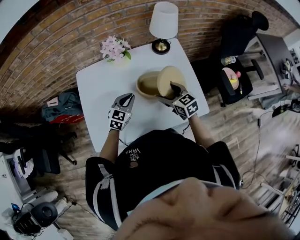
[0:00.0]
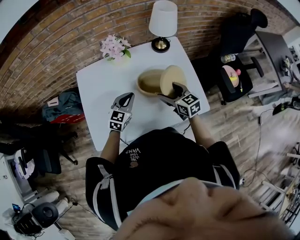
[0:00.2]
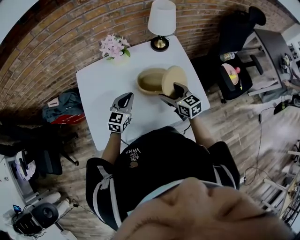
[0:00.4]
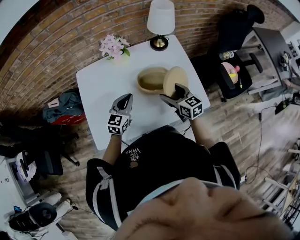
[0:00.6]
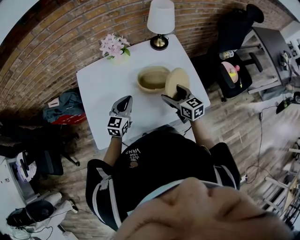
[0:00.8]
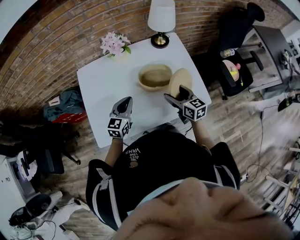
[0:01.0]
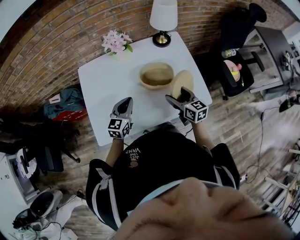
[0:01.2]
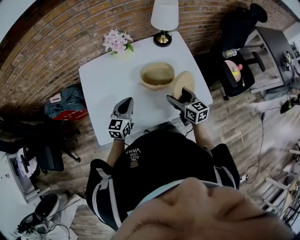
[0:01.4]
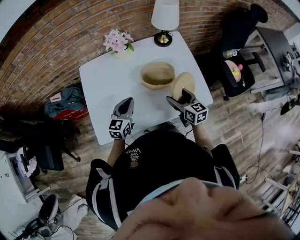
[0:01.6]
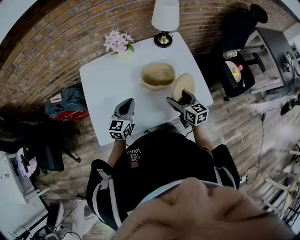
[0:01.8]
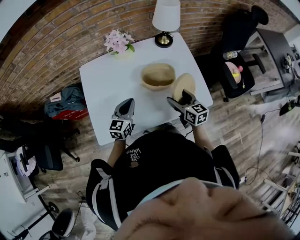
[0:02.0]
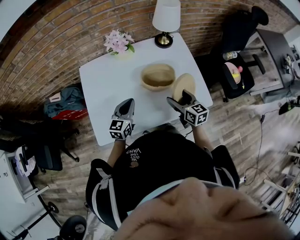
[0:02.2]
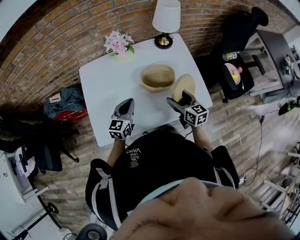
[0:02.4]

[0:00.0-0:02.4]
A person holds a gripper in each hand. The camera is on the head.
0:00.0 to 0:01.2: The grippers both shift backward by some 5 cm. The right gripper turns by some 20 degrees.
0:01.2 to 0:02.4: Neither gripper changes place.

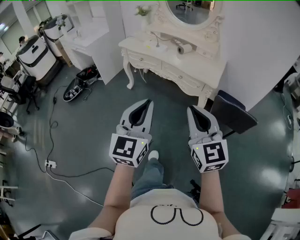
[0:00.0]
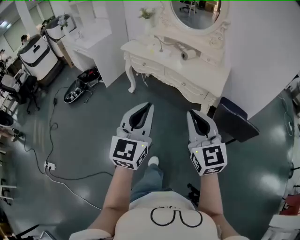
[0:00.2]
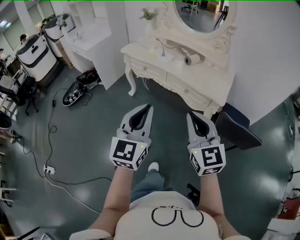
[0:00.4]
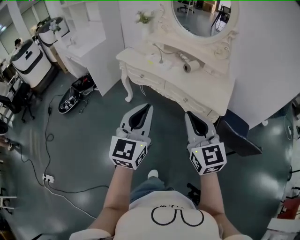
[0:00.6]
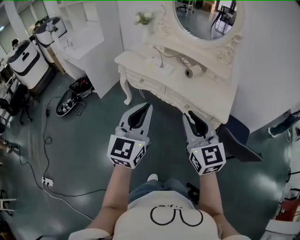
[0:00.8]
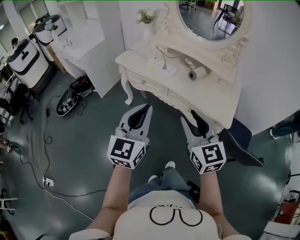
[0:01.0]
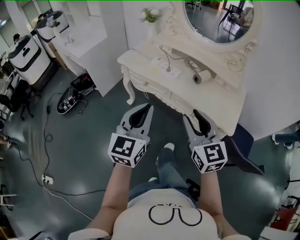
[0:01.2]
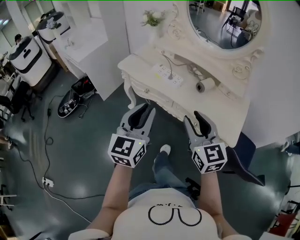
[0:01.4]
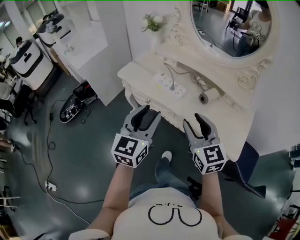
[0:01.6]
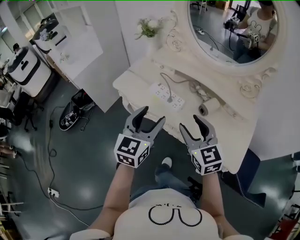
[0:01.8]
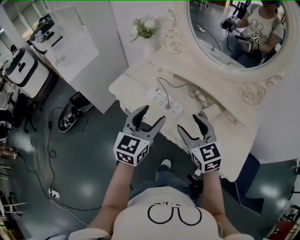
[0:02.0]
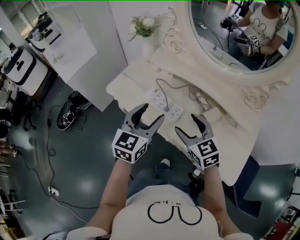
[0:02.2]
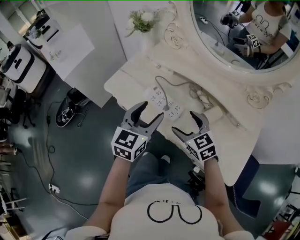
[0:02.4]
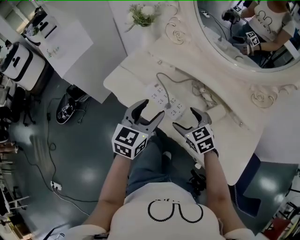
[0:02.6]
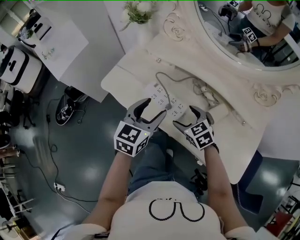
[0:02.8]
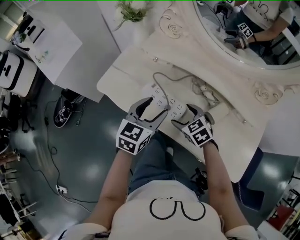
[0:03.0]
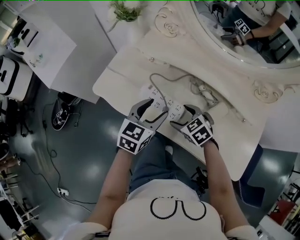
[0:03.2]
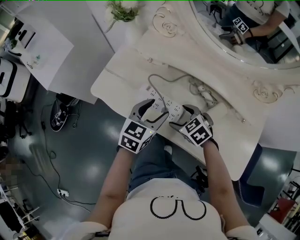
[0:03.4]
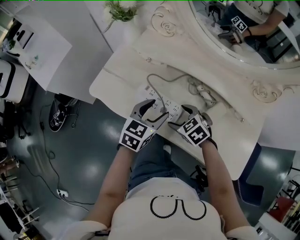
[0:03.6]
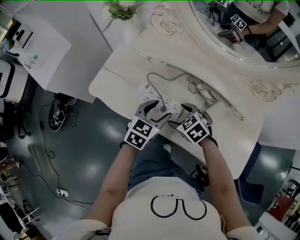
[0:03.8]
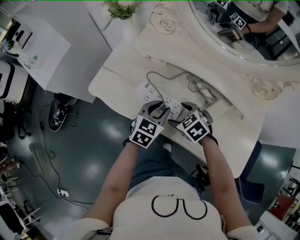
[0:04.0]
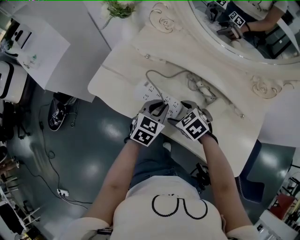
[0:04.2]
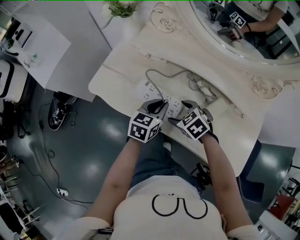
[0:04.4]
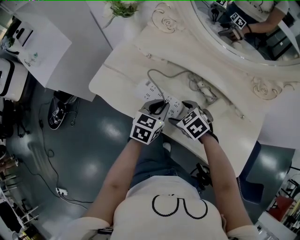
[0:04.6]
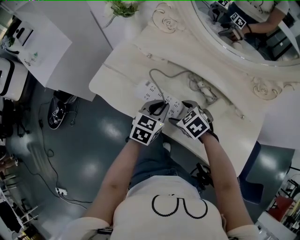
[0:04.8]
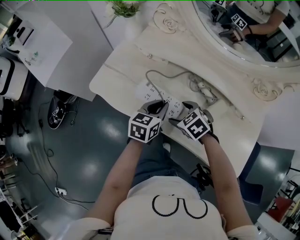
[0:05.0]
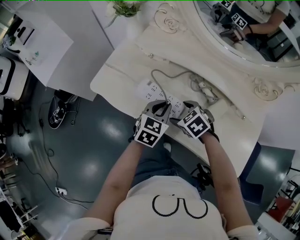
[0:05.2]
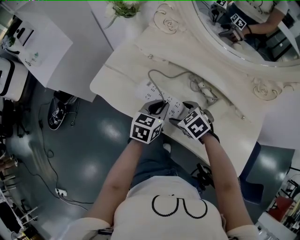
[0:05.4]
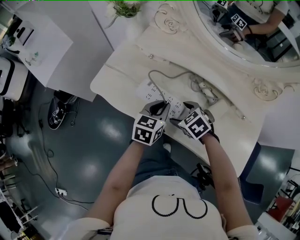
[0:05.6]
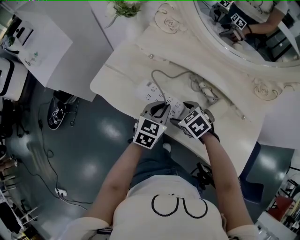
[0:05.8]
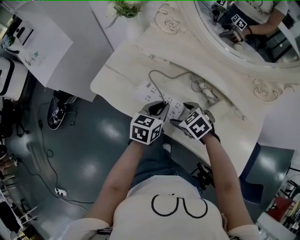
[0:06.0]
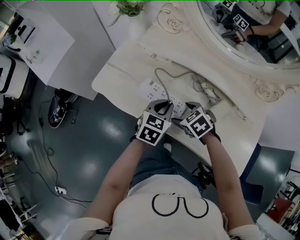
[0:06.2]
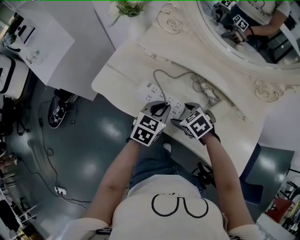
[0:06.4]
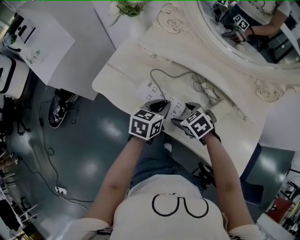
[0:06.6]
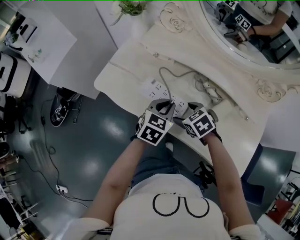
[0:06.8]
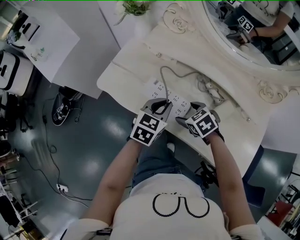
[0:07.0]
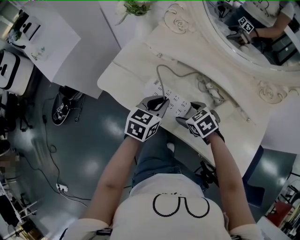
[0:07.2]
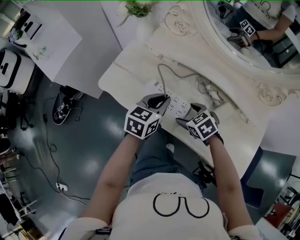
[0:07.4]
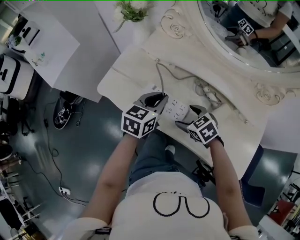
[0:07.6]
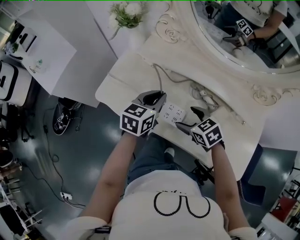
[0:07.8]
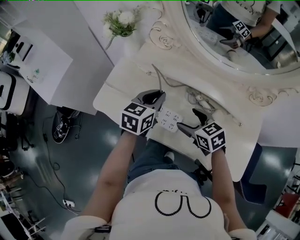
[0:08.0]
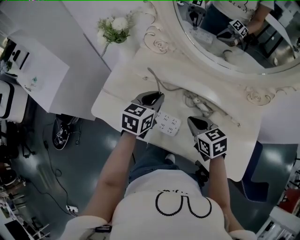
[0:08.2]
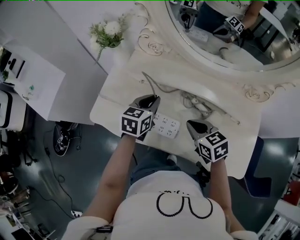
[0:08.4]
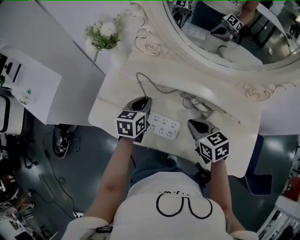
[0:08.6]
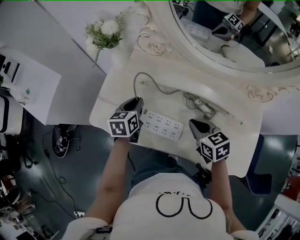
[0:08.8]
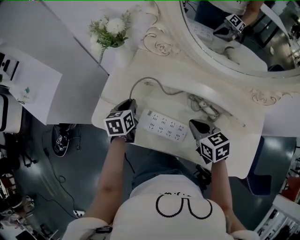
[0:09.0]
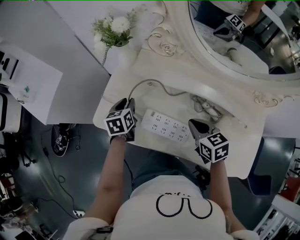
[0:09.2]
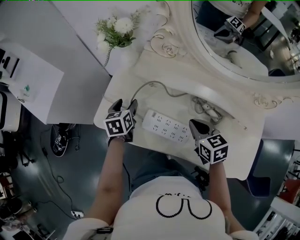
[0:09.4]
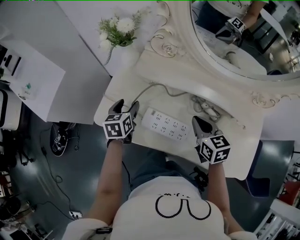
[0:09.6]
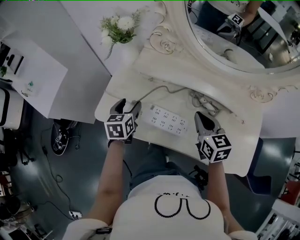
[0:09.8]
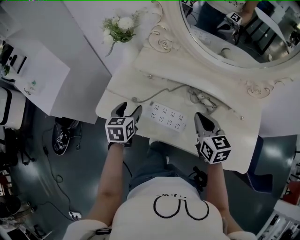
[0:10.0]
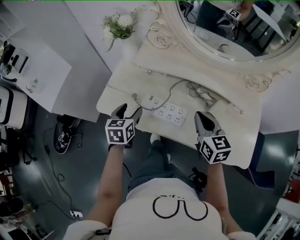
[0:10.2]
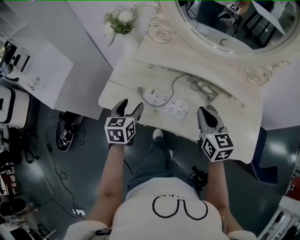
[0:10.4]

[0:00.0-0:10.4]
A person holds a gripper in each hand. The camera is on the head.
0:00.0 to 0:01.4: The pair of grippers is taken forward, some 40 cm. The right gripper opens up.
0:01.4 to 0:03.0: The two grippers go roughly 40 cm forward and downward. The left gripper changes its angle by some 30 degrees, and opens, while the right gripper tilts its fingers some 40 degrees downward, and opens.
0:03.0 to 0:04.4: The left gripper is displaced downward by approximately 10 cm, and closes up.
0:04.4 to 0:06.0: There are only small adjustments of the grippers.
0:06.0 to 0:07.4: The left gripper changes place by approximately 5 cm.
0:07.4 to 0:09.0: The left gripper travels forward and to the left by roughly 20 cm, and swivels roughly 20 degrees. The right gripper goes approximately 10 cm upward and forward, rotates some 30 degrees, and closes up.
0:09.0 to 0:10.4: The right gripper goes some 10 cm upward and backward, and changes its angle by some 30 degrees; the left gripper travels backward and upward by some 15 cm, and opens up.

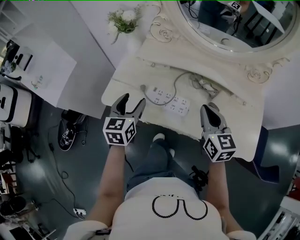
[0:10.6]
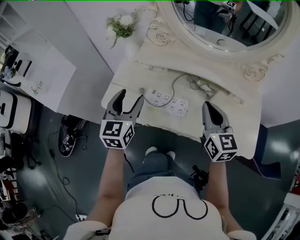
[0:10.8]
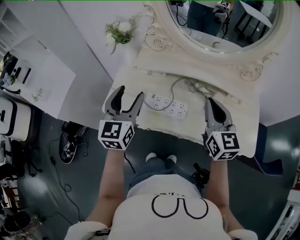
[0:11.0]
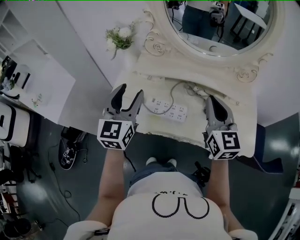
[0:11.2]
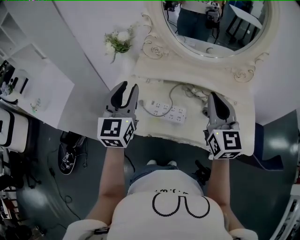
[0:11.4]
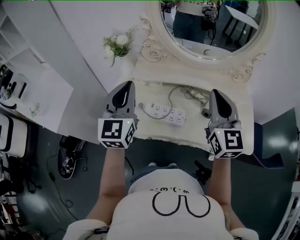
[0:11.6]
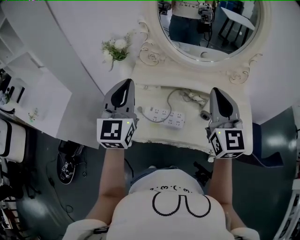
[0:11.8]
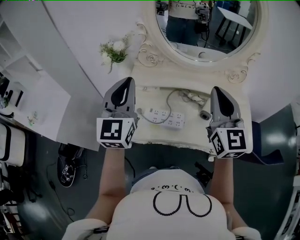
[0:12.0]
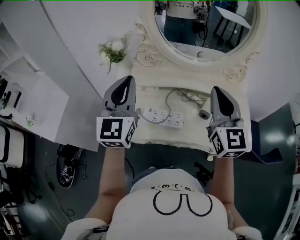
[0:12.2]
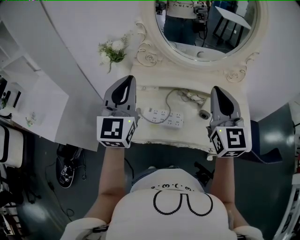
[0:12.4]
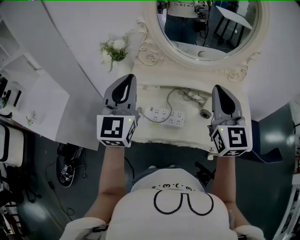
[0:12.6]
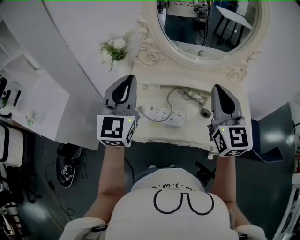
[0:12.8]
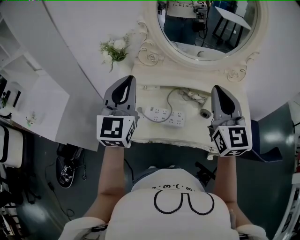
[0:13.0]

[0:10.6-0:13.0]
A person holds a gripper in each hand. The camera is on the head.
0:10.6 to 0:11.8: The two grippers go some 20 cm upward. The left gripper rotates about 40 degrees, and closes up. The right gripper changes its angle by approximately 30 degrees.
0:11.8 to 0:13.0: There are only small adjustments of the grippers.

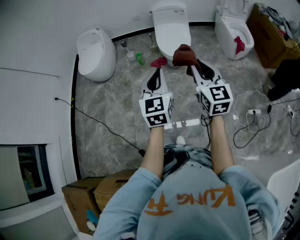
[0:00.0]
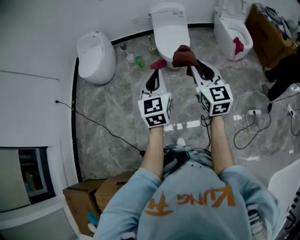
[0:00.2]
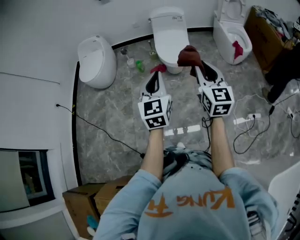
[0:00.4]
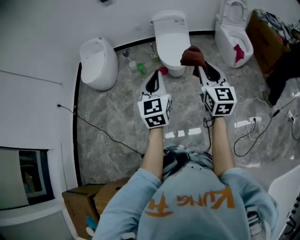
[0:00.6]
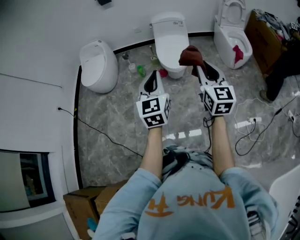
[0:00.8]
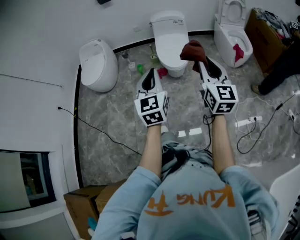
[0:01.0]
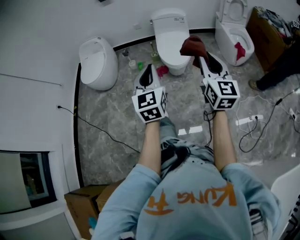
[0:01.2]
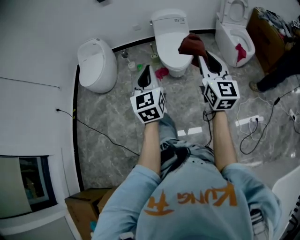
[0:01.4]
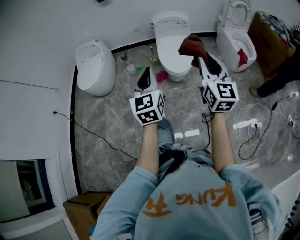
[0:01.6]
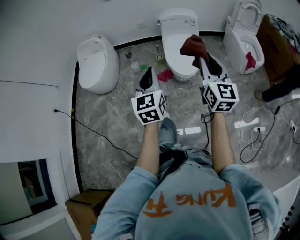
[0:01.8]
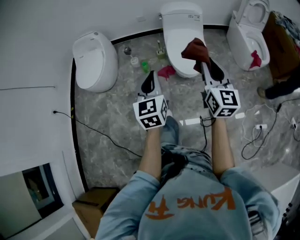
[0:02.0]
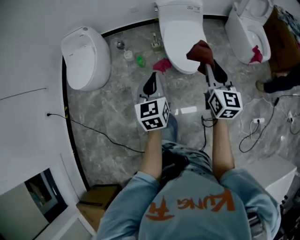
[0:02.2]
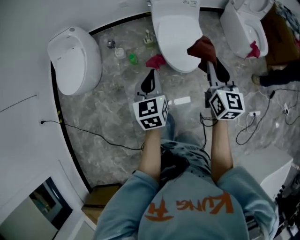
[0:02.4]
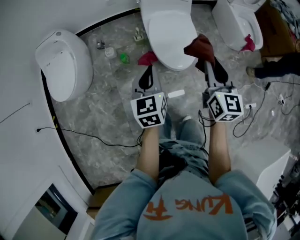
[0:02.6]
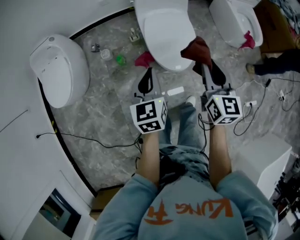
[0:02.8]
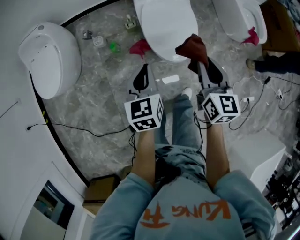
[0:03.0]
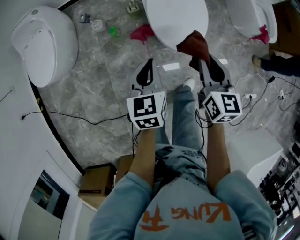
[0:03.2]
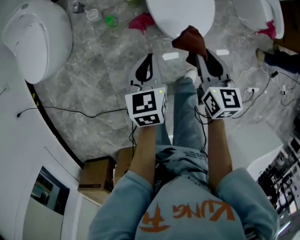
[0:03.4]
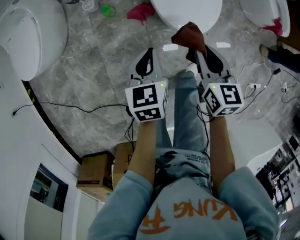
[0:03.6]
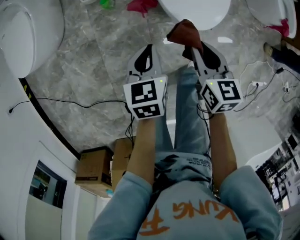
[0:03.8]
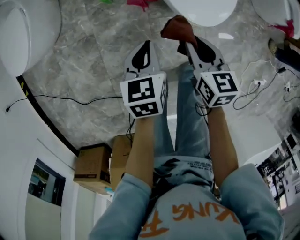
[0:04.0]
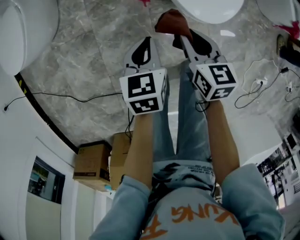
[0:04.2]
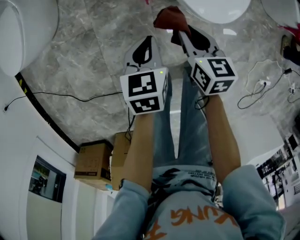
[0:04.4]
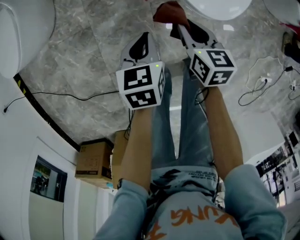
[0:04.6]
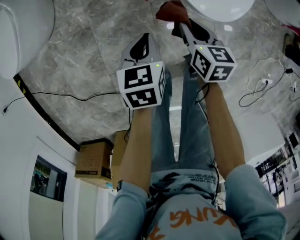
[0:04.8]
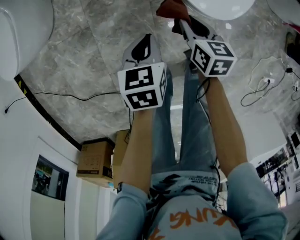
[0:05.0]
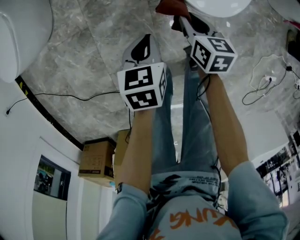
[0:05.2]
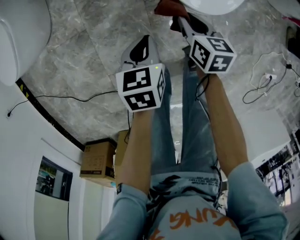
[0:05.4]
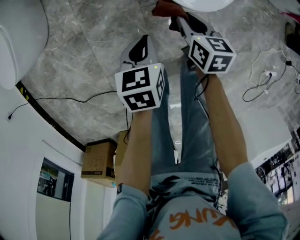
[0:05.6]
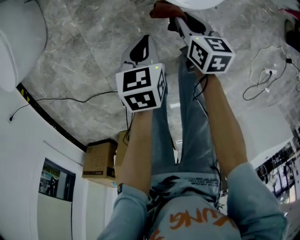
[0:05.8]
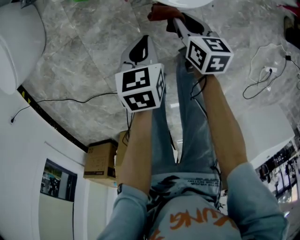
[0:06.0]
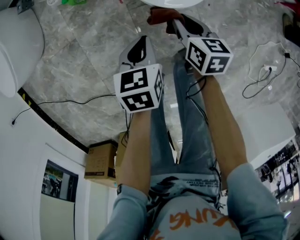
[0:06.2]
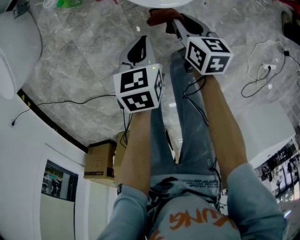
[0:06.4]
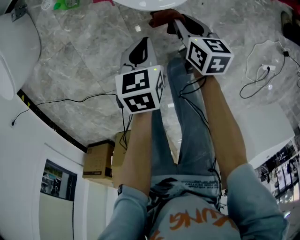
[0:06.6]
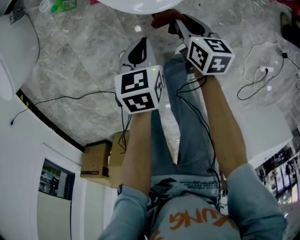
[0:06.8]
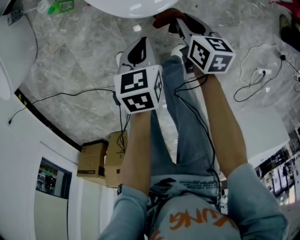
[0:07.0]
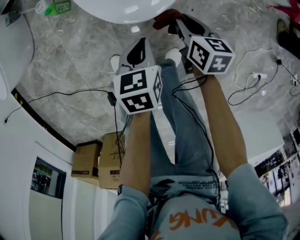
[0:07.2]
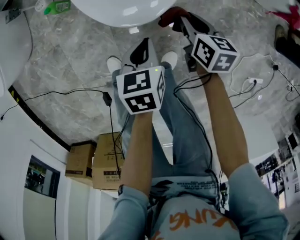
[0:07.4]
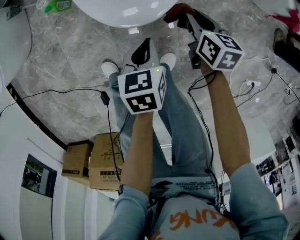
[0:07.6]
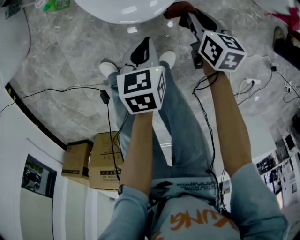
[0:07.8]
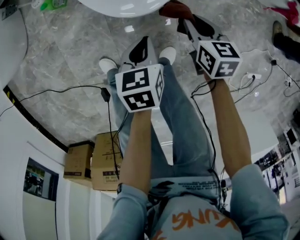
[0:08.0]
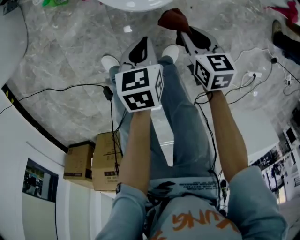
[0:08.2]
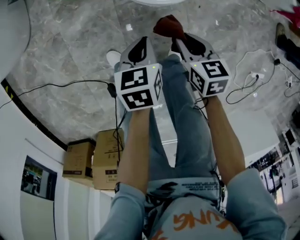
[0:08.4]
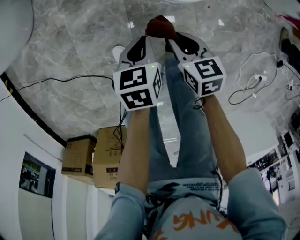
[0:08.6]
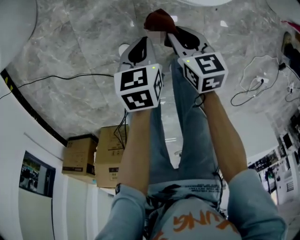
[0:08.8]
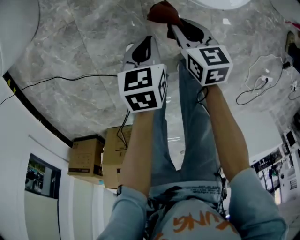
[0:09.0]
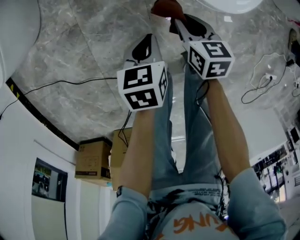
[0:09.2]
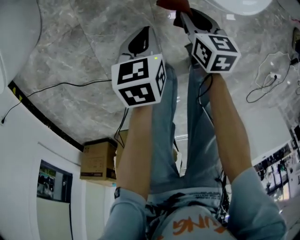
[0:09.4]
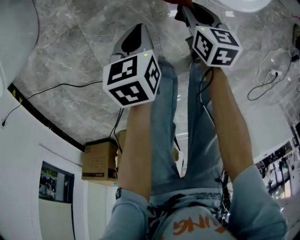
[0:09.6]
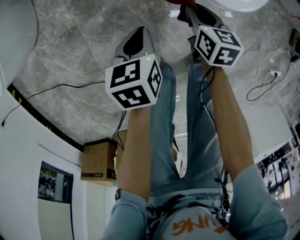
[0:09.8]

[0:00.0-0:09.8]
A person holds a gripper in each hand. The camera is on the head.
0:00.0 to 0:01.4: The two grippers go some 10 cm forward.
0:01.4 to 0:02.8: The grippers both shift forward and downward by some 40 cm. The left gripper changes its angle by about 30 degrees; the right gripper swivels about 20 degrees.
0:02.8 to 0:04.2: Both grippers travel together downward, about 35 cm. The left gripper changes its angle by roughly 20 degrees. Meanwhile the right gripper swivels some 30 degrees.
0:04.2 to 0:05.6: The grippers both shift downward and to the right by some 10 cm.
0:05.6 to 0:07.0: The two grippers go approximately 15 cm to the right.
0:07.0 to 0:08.4: The right gripper shifts some 10 cm backward and to the left, while the left gripper moves some 5 cm.
0:08.4 to 0:09.8: The right gripper moves to the left, forward and downward, some 20 cm. Meanwhile the left gripper heads to the left, covering some 20 cm.
